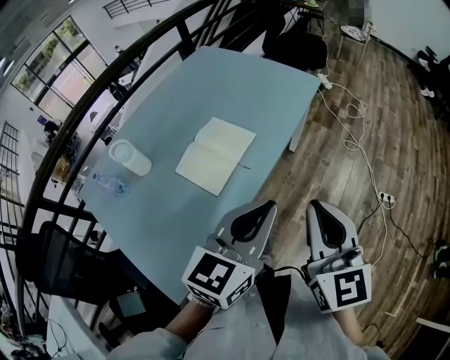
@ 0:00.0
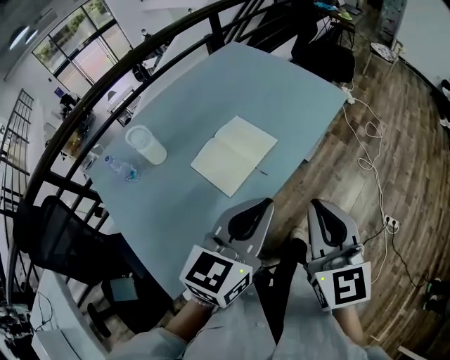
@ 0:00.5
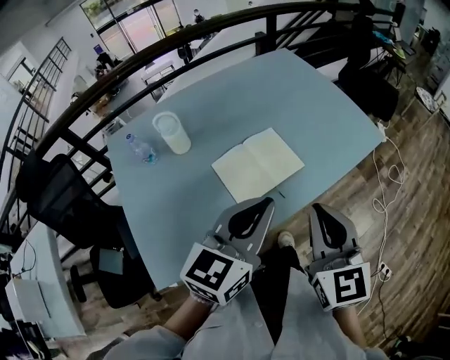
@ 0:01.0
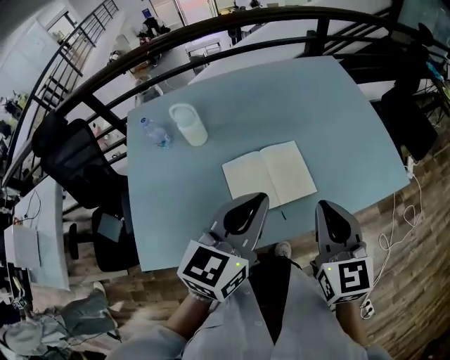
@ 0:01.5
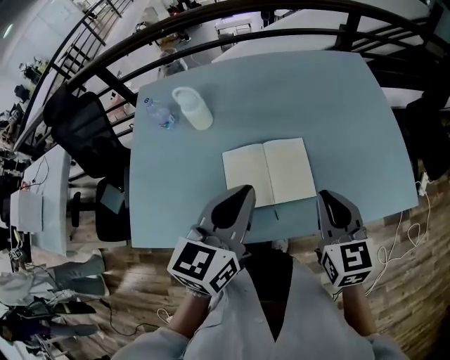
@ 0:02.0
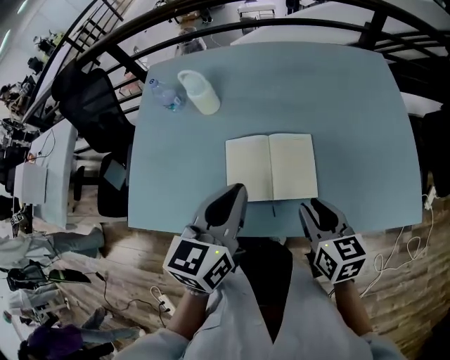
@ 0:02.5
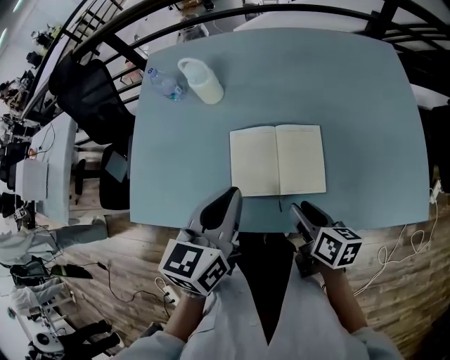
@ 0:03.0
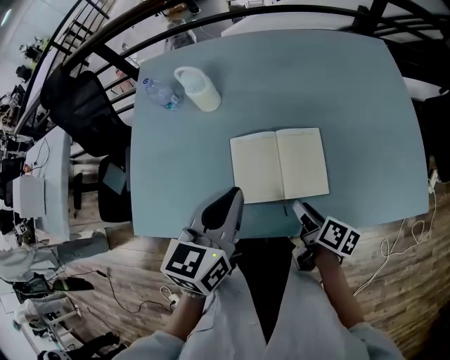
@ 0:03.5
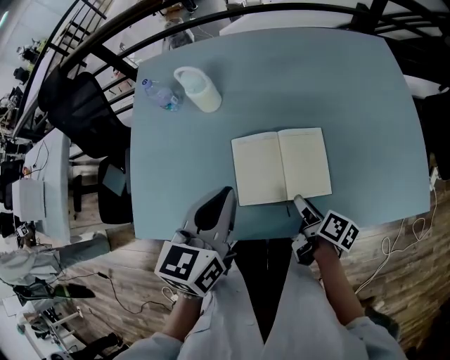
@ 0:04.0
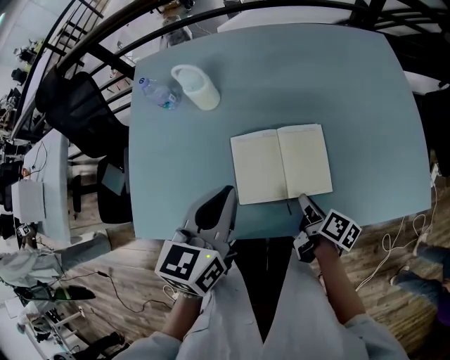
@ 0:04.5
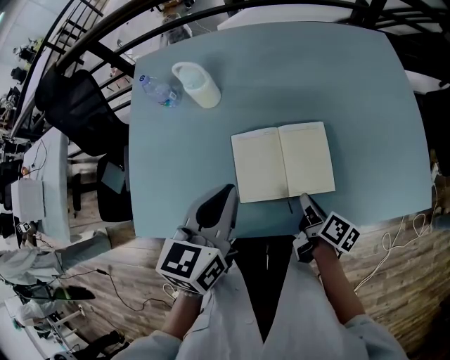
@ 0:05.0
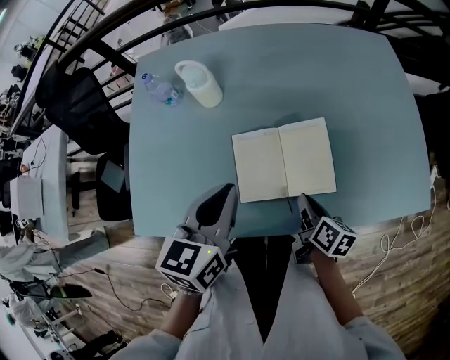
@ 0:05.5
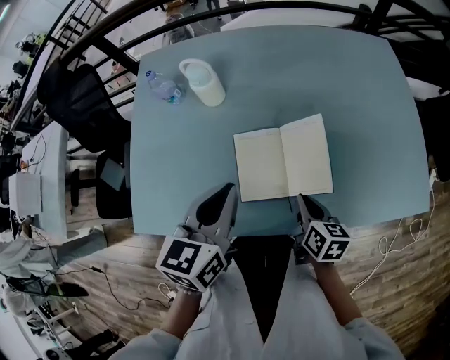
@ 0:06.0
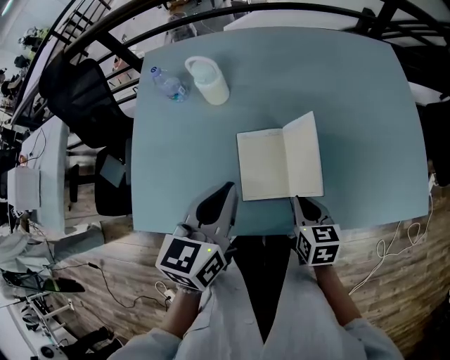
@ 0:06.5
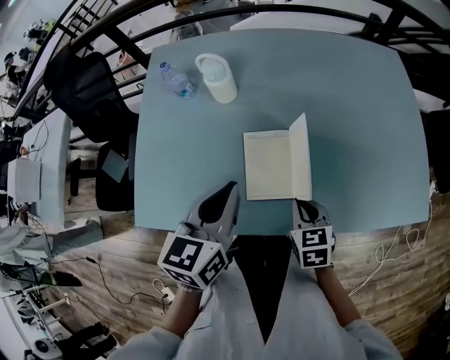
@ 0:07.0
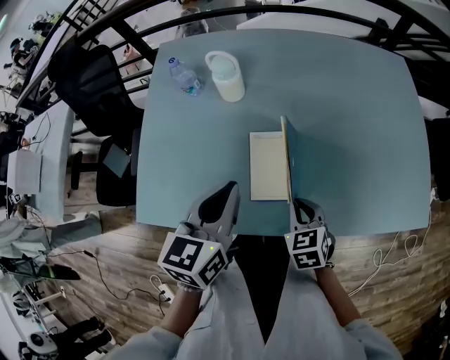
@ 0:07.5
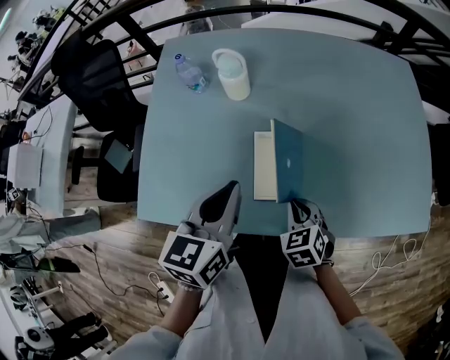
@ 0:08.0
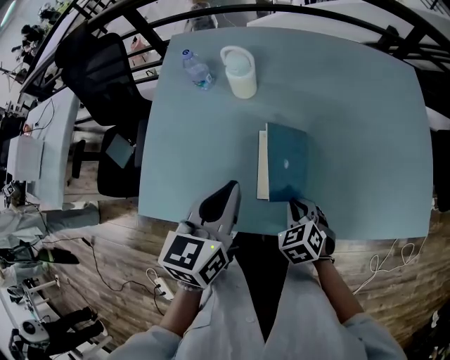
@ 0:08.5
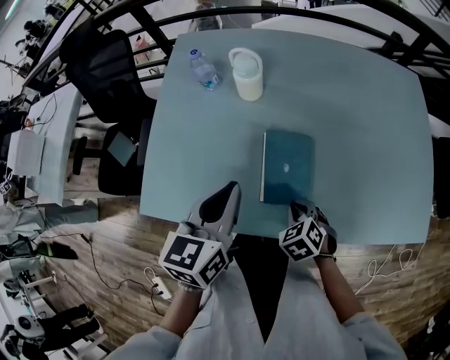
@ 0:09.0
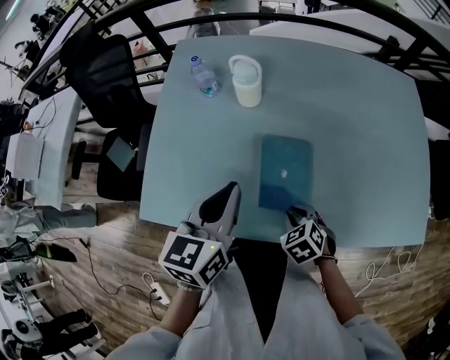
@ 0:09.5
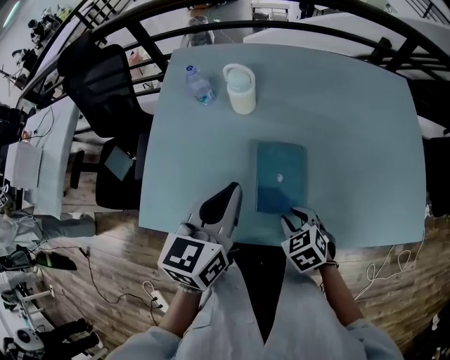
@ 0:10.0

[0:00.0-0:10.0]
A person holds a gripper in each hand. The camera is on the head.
0:00.0 to 0:02.0: The left gripper ends up some 25 cm from where it was, and rotates roughly 60 degrees. Meanwhile the right gripper shifts by approximately 35 cm, and turns by about 50 degrees.
0:02.0 to 0:04.0: The left gripper travels to the left and downward by roughly 10 cm. Meanwhile the right gripper moves downward, some 20 cm, twists roughly 70 degrees clockwise, seen from behind, and opens up.
0:04.0 to 0:06.0: The right gripper swivels about 40 degrees, and closes up.
0:06.0 to 0:08.0: The right gripper heads to the left, covering approximately 5 cm, and rotates around the line of its fingers by roughly 50 degrees, counterclockwise from behind.
0:08.0 to 0:10.0: The right gripper opens up.

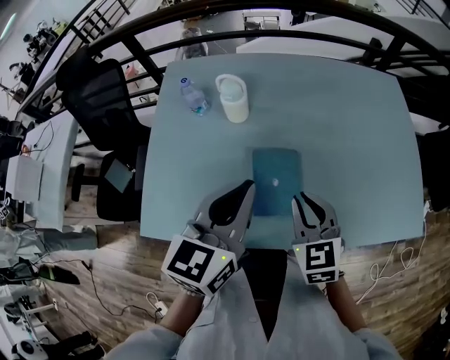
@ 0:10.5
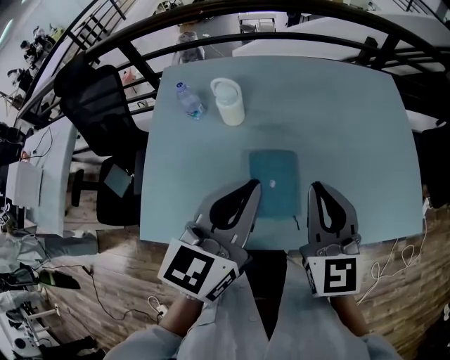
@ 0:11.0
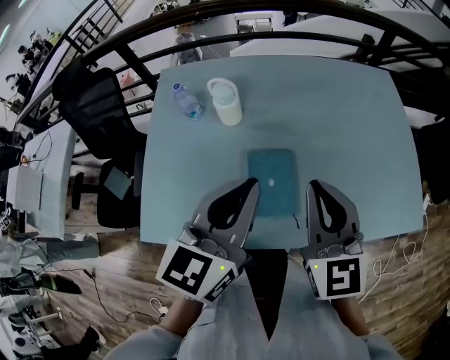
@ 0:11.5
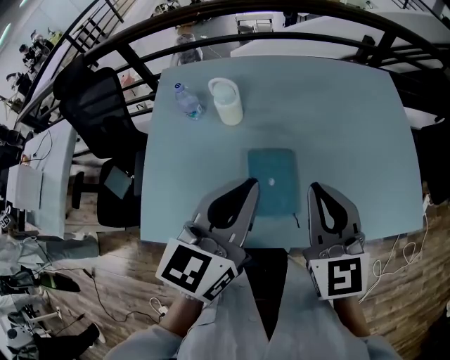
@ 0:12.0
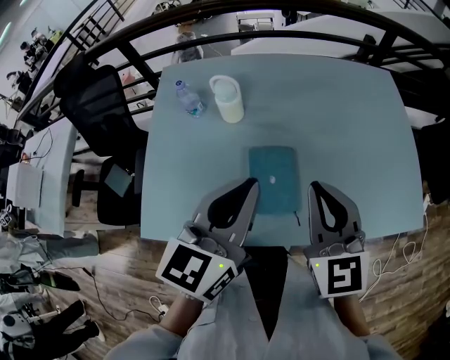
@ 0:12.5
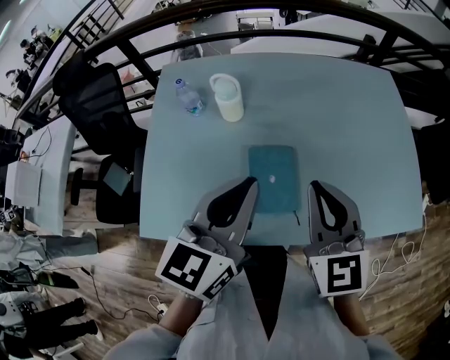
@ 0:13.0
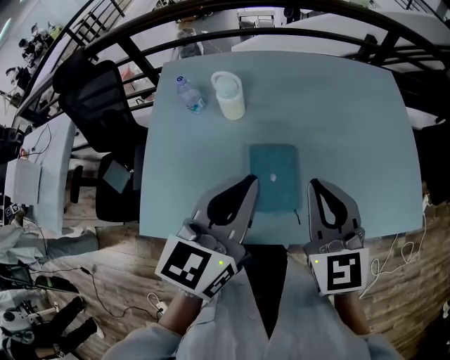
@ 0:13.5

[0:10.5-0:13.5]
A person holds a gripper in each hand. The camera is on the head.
0:10.5 to 0:12.0: The right gripper is displaced upward by about 10 cm.
0:12.0 to 0:13.5: Both grippers stay about where they are.

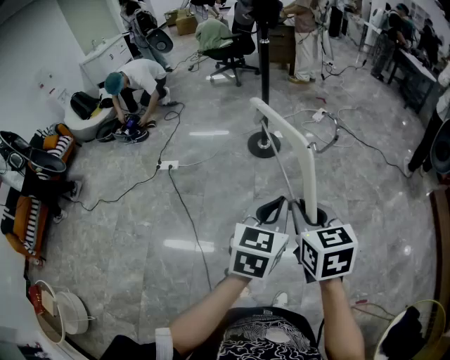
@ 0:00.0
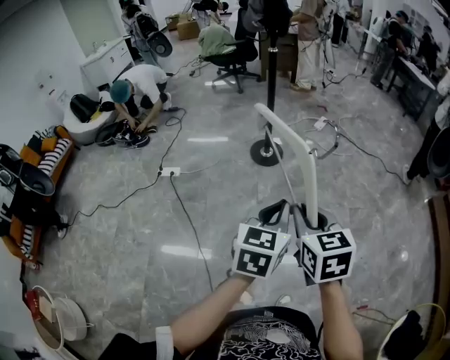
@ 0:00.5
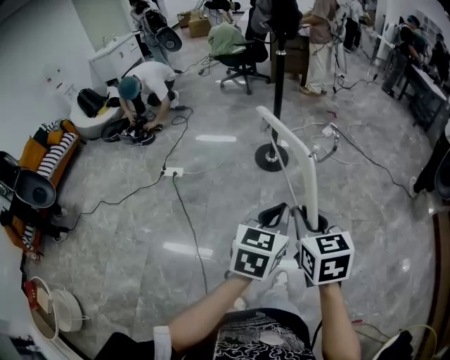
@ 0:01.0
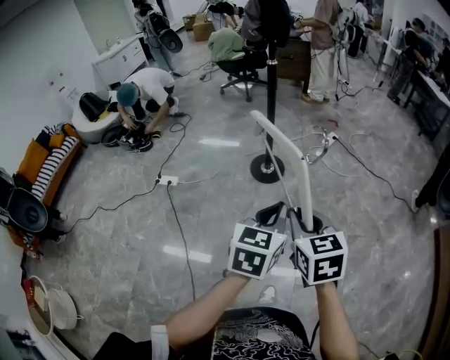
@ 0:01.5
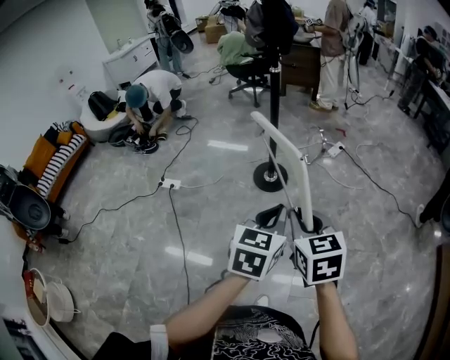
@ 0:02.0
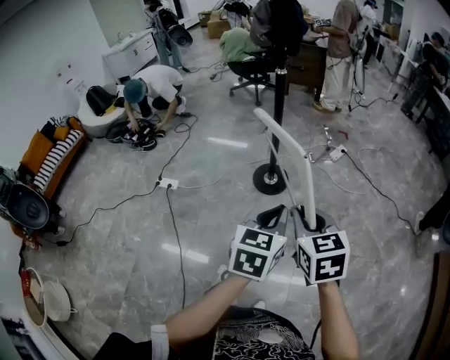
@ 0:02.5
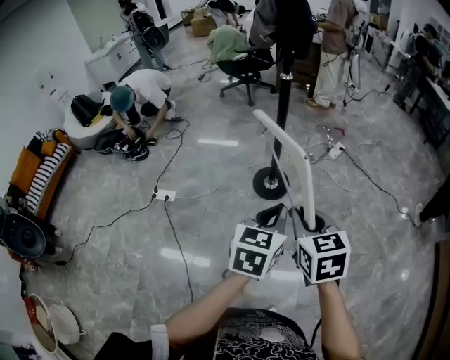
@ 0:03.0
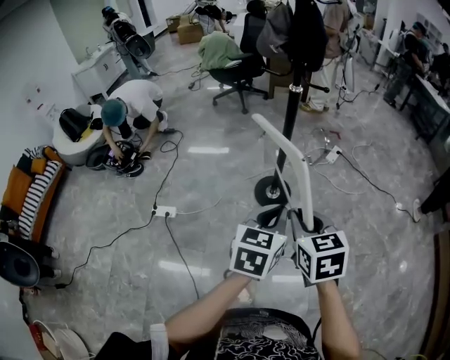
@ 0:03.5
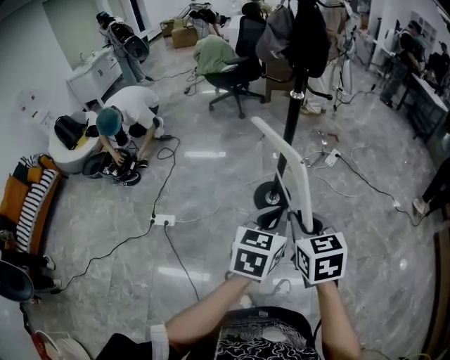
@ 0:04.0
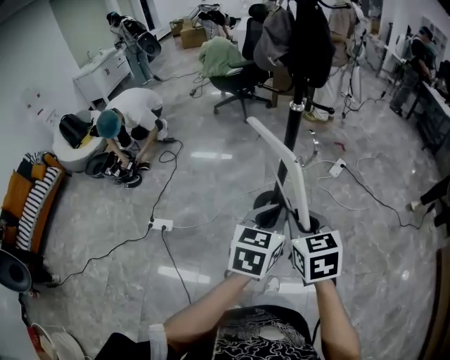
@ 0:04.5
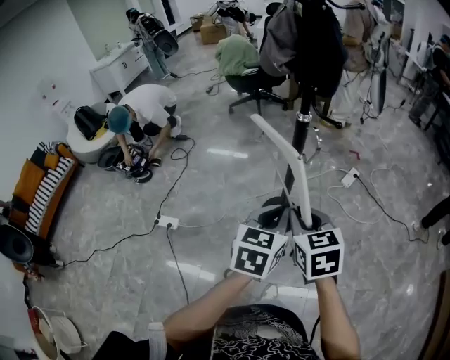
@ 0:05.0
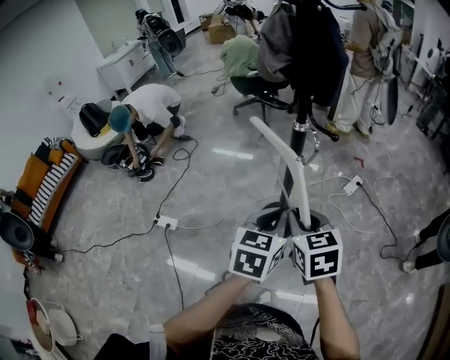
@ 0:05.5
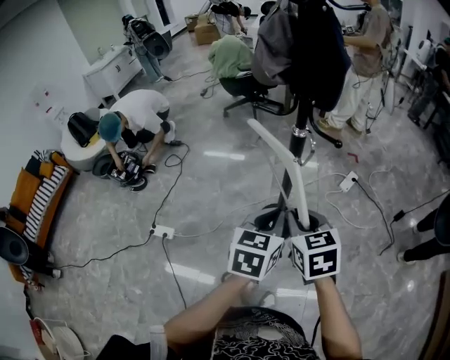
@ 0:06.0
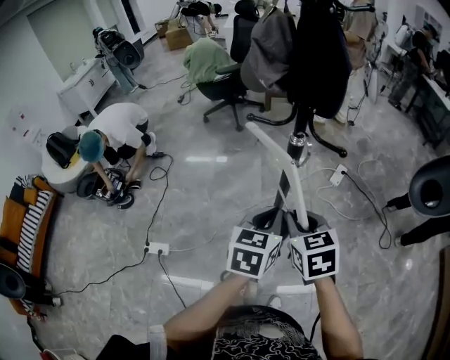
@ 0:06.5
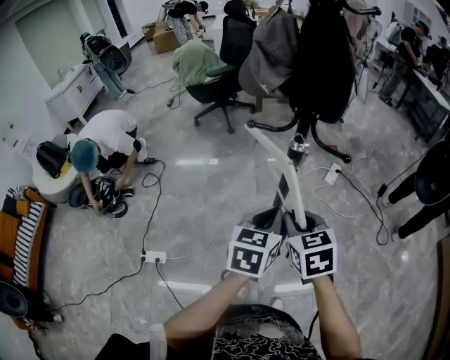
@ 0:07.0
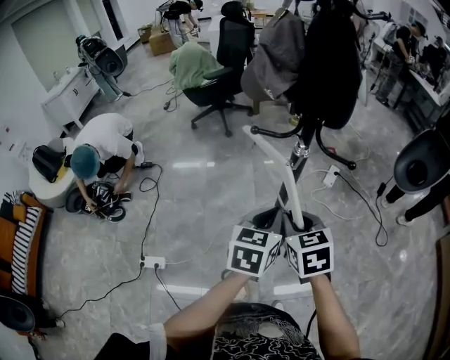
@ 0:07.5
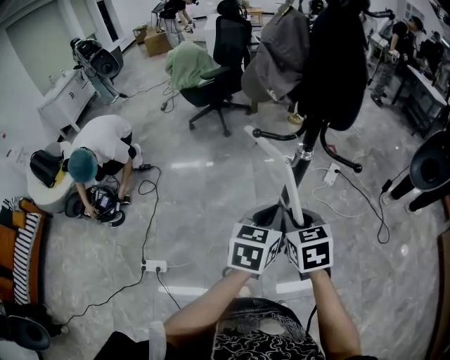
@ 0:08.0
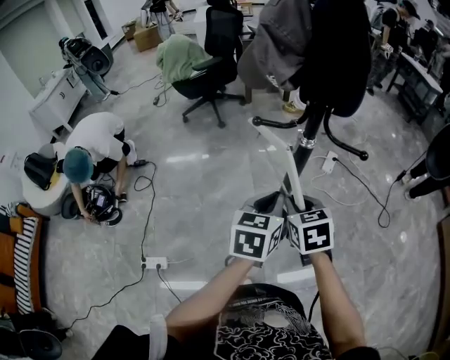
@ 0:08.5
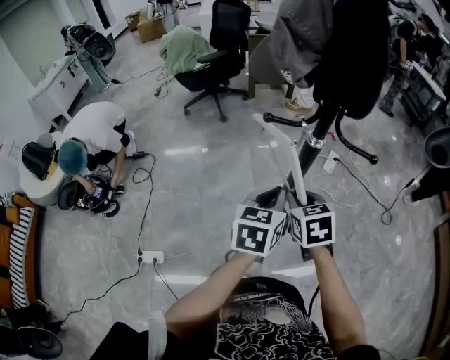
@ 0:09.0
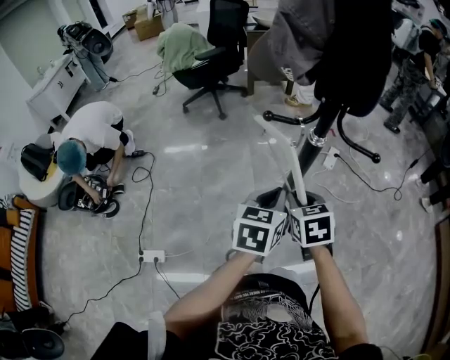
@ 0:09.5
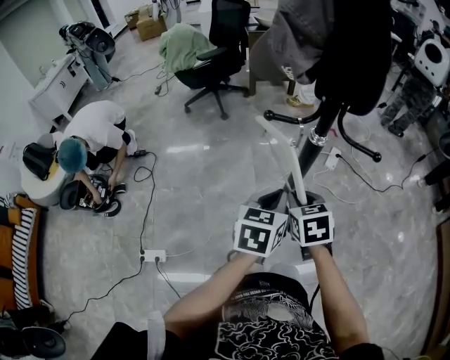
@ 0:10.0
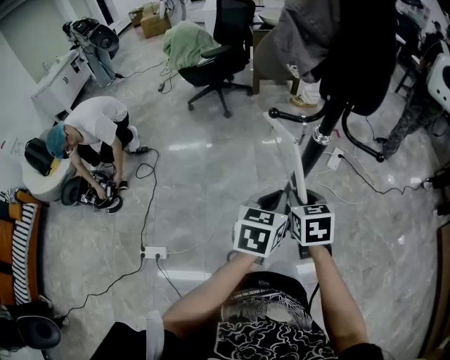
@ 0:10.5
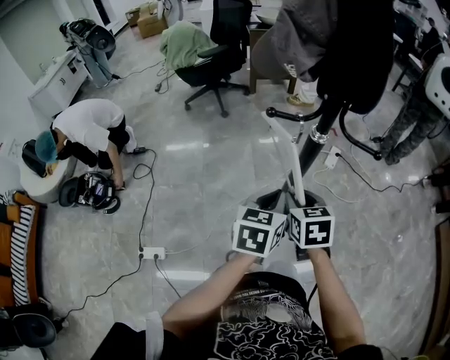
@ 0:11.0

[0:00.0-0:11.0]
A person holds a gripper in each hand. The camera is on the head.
0:00.0 to 0:02.0: The grippers both shift forward by approximately 25 cm.
0:02.0 to 0:03.5: The two grippers go roughly 30 cm forward and to the left.
0:03.5 to 0:05.5: The two grippers go about 25 cm forward.
0:05.5 to 0:07.5: The grippers both shift forward and to the left by roughly 15 cm.
0:07.5 to 0:09.0: The left gripper heads forward, covering some 5 cm; the right gripper moves forward and downward, some 10 cm.
0:09.0 to 0:11.0: The grippers make only small movements.

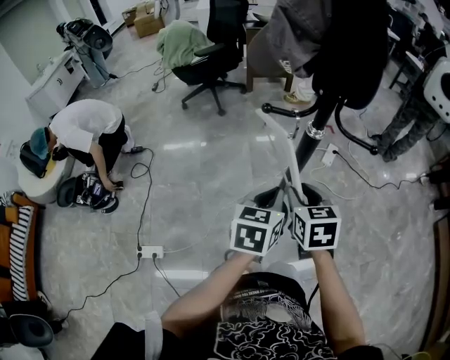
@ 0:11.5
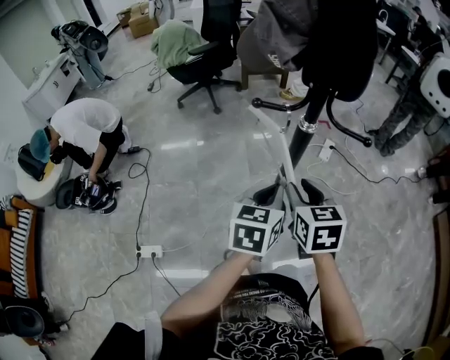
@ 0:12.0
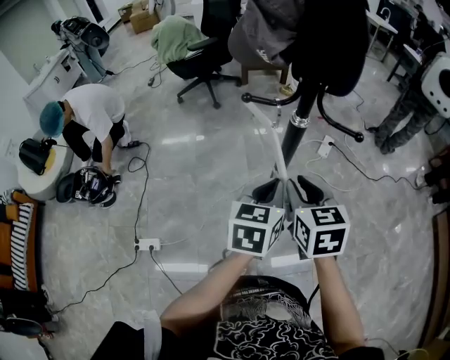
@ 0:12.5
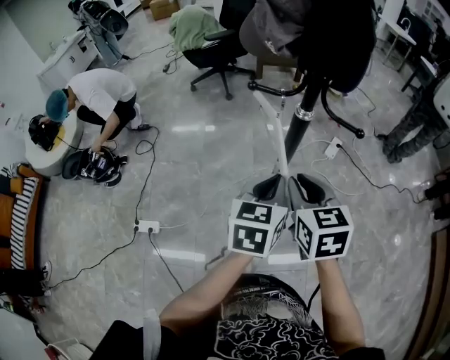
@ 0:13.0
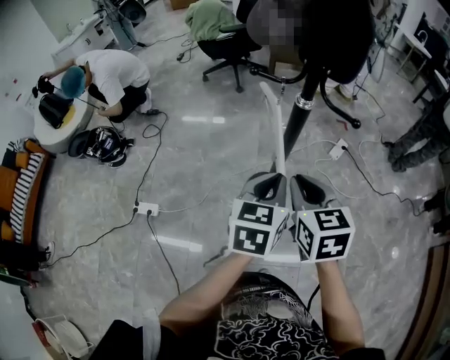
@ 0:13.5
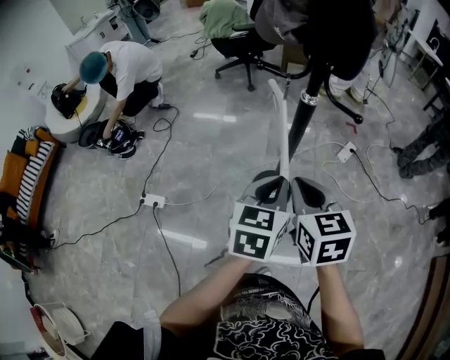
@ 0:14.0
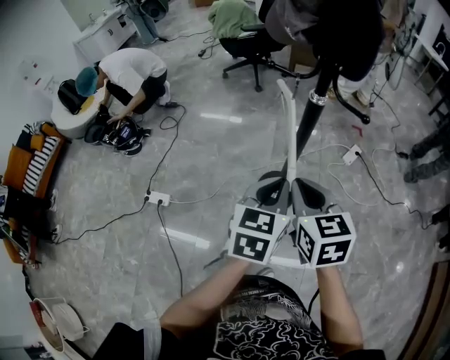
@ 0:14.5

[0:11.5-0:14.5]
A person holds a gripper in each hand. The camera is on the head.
0:11.5 to 0:13.0: The left gripper shifts some 5 cm to the right. The right gripper moves upward and backward, approximately 10 cm.
0:13.0 to 0:14.5: Both grippers move backward, about 10 cm.
